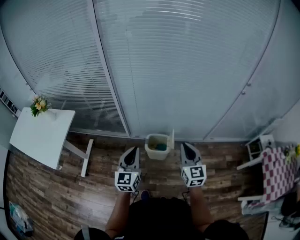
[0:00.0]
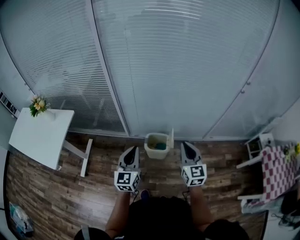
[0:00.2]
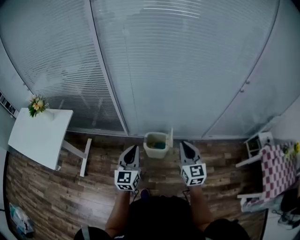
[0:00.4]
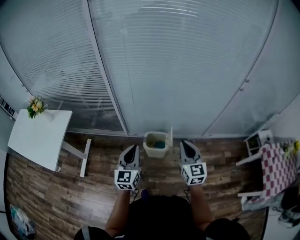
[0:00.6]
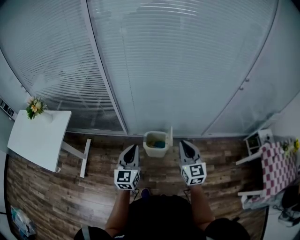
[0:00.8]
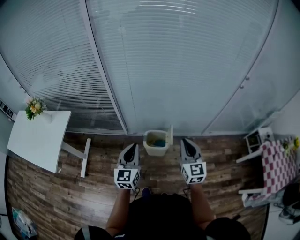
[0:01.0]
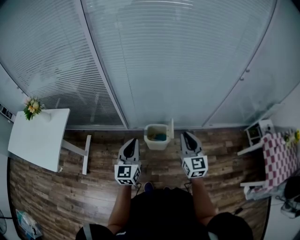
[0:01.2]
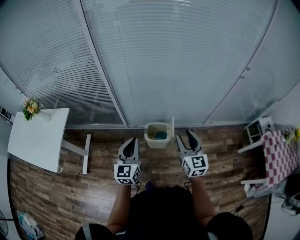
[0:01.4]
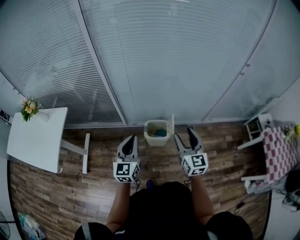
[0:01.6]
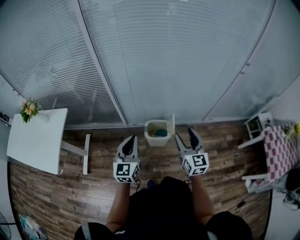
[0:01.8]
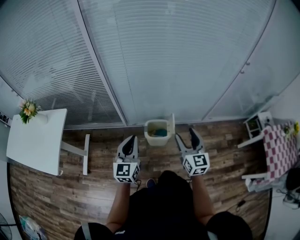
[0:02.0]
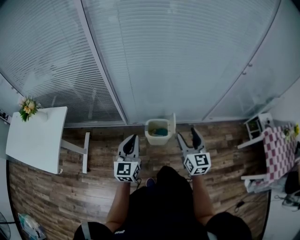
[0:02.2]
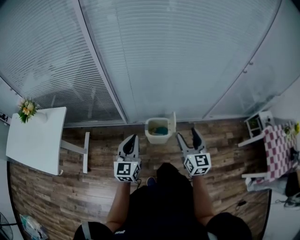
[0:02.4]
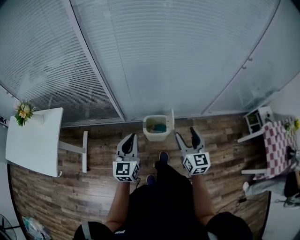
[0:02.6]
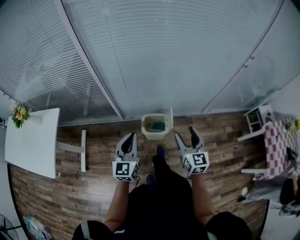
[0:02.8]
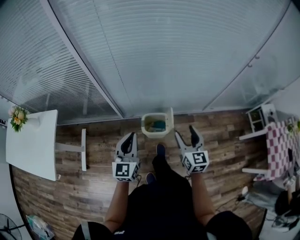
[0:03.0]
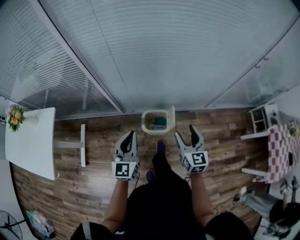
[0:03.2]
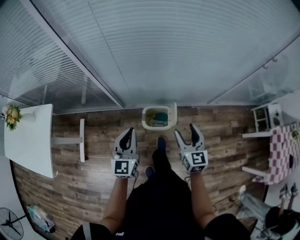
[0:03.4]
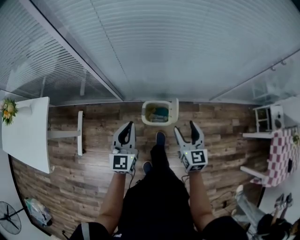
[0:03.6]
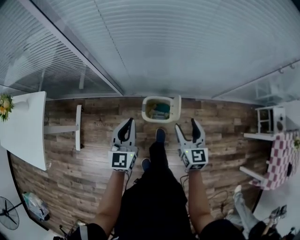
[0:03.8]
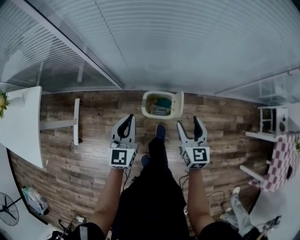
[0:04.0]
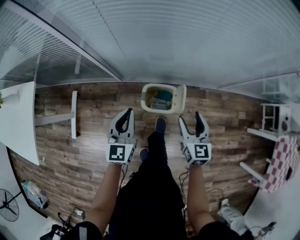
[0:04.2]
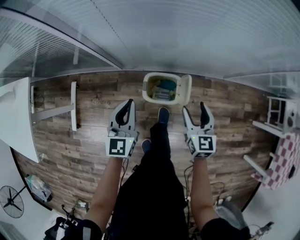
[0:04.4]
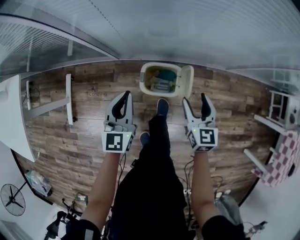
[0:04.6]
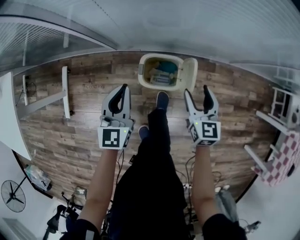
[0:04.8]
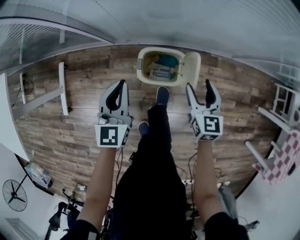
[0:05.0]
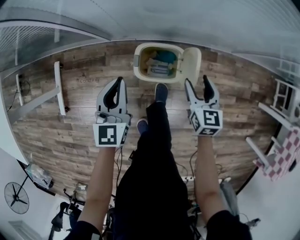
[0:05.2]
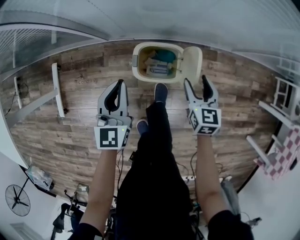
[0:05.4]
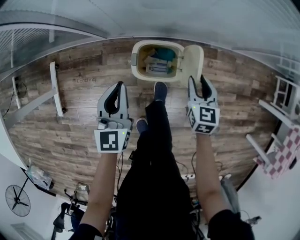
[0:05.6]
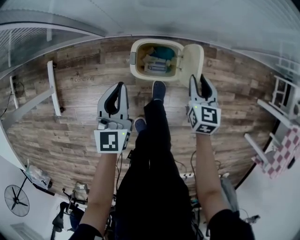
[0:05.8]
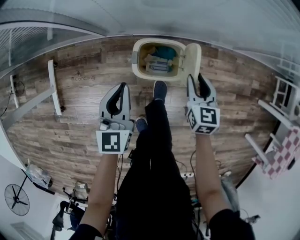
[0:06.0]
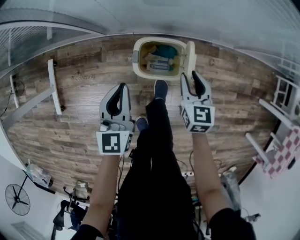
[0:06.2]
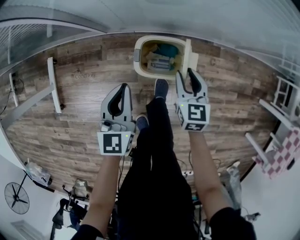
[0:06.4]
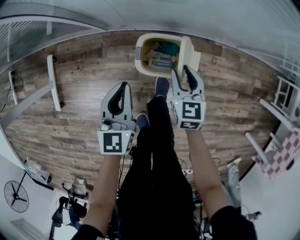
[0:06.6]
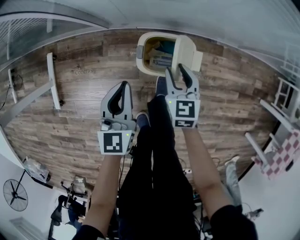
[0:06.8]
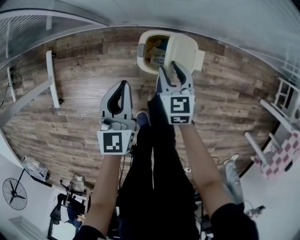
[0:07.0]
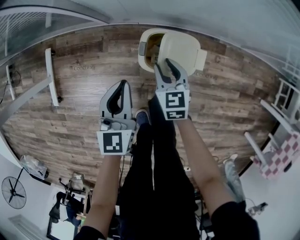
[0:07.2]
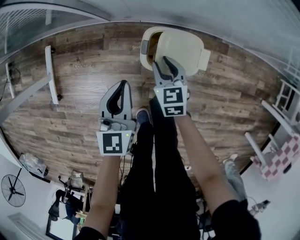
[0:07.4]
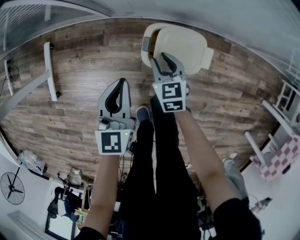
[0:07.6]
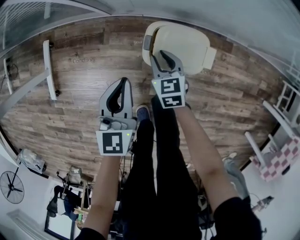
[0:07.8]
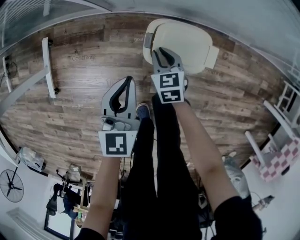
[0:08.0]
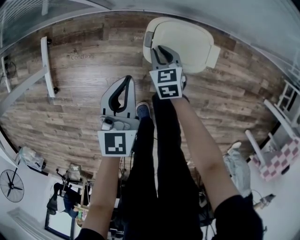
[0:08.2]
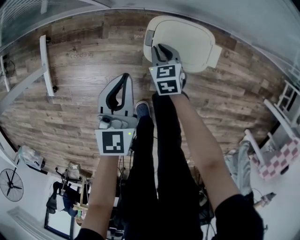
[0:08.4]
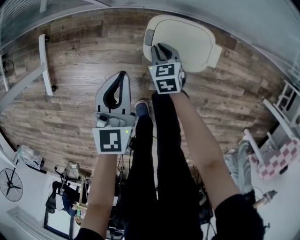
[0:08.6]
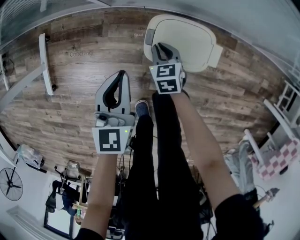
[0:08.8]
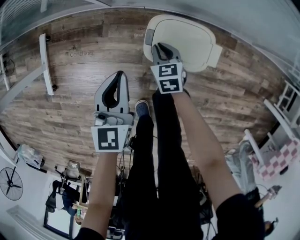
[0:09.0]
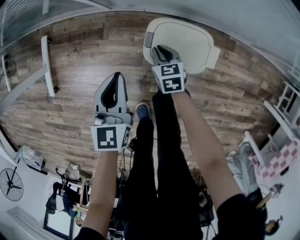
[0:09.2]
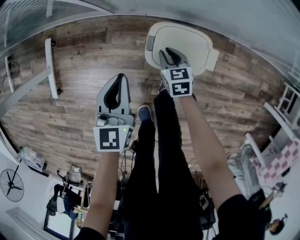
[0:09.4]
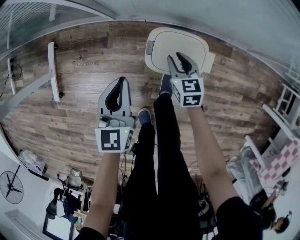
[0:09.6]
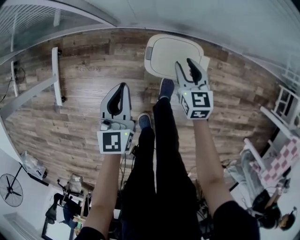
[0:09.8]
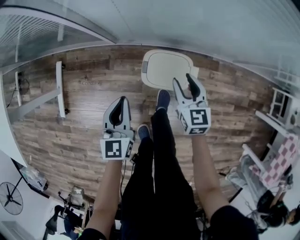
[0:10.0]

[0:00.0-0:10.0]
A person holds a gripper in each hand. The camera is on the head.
0:00.0 to 0:01.4: The right gripper opens up.
0:01.4 to 0:02.8: The right gripper moves downward, roughly 5 cm. The left gripper changes place by approximately 5 cm.
0:02.8 to 0:04.2: The two grippers go approximately 20 cm downward and forward.
0:04.2 to 0:05.8: The two grippers go about 20 cm downward. The right gripper closes up.
0:05.8 to 0:07.2: The right gripper shifts approximately 20 cm to the left.
0:07.2 to 0:08.6: The right gripper travels downward by roughly 15 cm, and closes up.
0:08.6 to 0:10.0: The right gripper heads upward and to the right, covering about 25 cm, swivels approximately 20 degrees, and opens its fingers. Meanwhile the left gripper heads upward, covering roughly 10 cm.

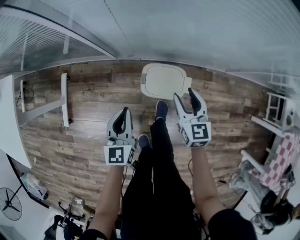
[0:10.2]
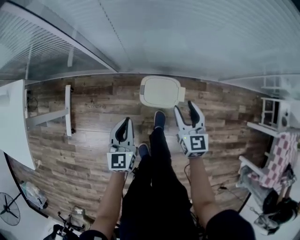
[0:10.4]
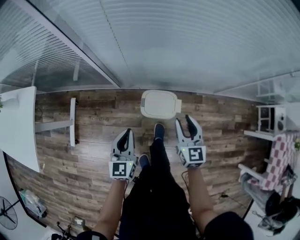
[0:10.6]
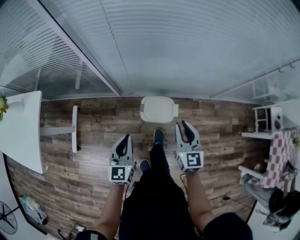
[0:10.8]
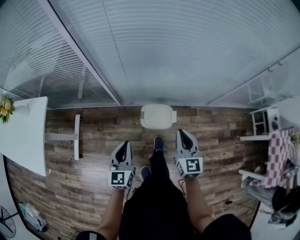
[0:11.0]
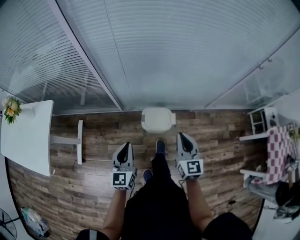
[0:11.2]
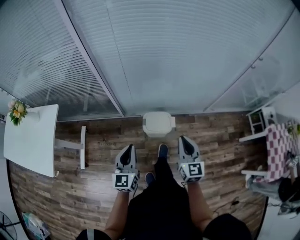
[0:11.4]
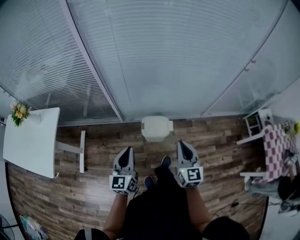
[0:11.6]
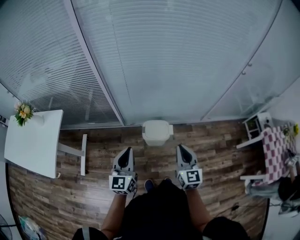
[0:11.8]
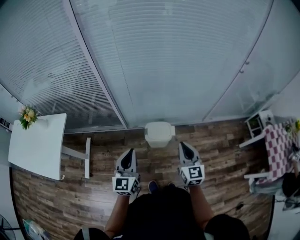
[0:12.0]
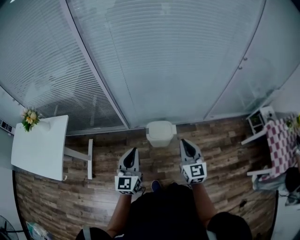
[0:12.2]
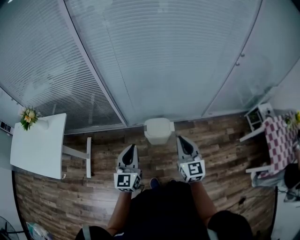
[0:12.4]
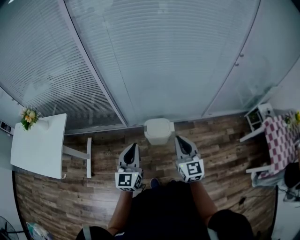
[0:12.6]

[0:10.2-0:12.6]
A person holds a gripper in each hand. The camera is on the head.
0:10.2 to 0:11.4: The grippers both shift upward and backward by about 30 cm. The right gripper closes.
0:11.4 to 0:12.6: The left gripper shifts about 5 cm upward, while the right gripper shifts about 10 cm upward and backward.

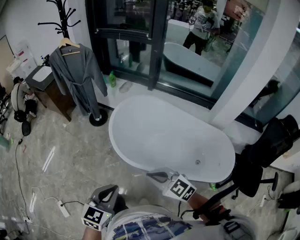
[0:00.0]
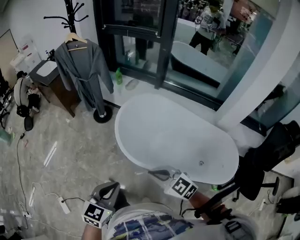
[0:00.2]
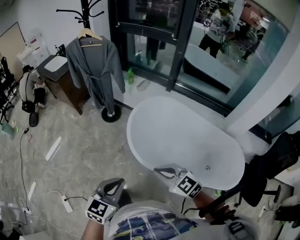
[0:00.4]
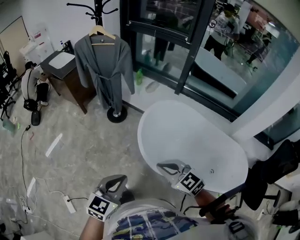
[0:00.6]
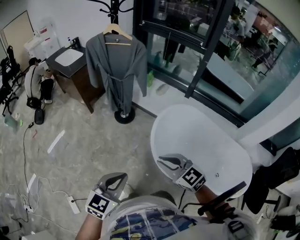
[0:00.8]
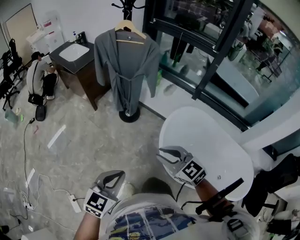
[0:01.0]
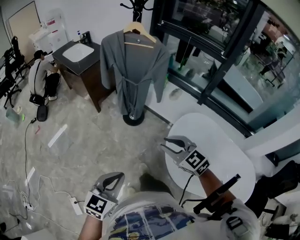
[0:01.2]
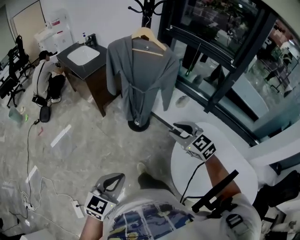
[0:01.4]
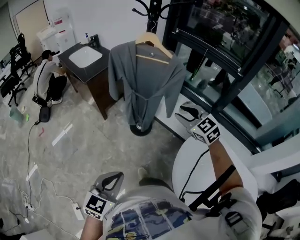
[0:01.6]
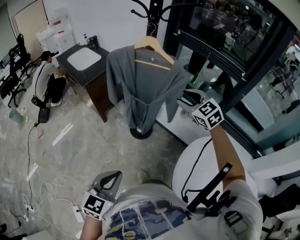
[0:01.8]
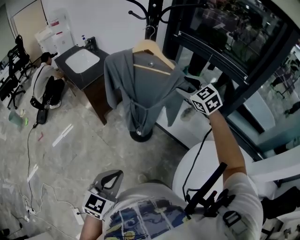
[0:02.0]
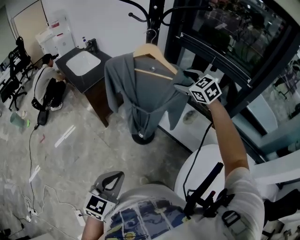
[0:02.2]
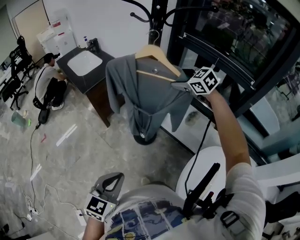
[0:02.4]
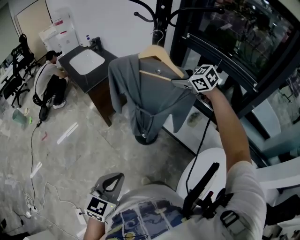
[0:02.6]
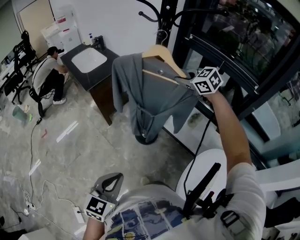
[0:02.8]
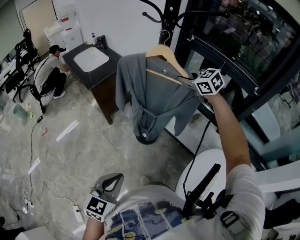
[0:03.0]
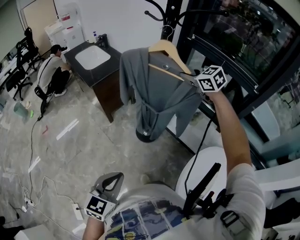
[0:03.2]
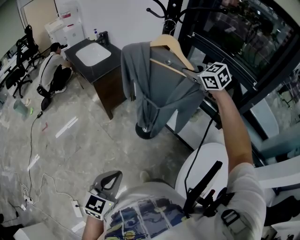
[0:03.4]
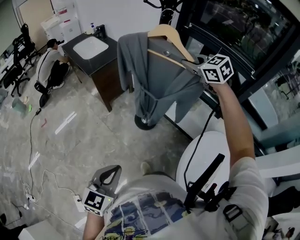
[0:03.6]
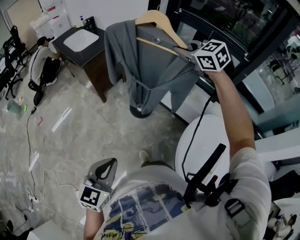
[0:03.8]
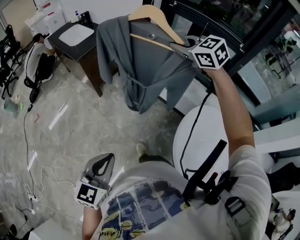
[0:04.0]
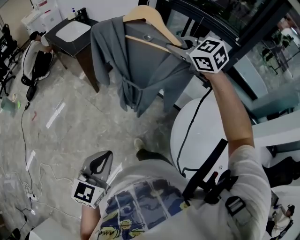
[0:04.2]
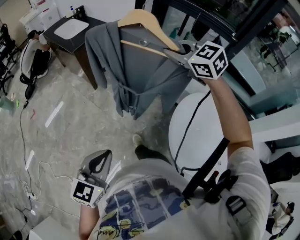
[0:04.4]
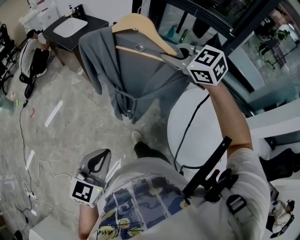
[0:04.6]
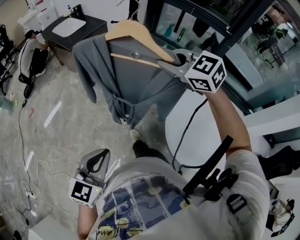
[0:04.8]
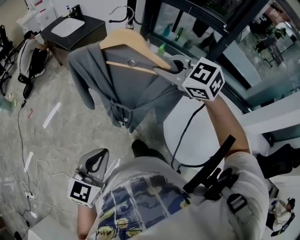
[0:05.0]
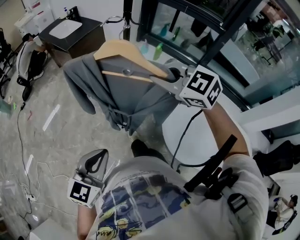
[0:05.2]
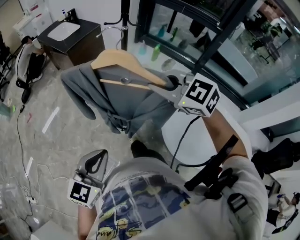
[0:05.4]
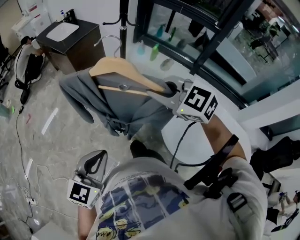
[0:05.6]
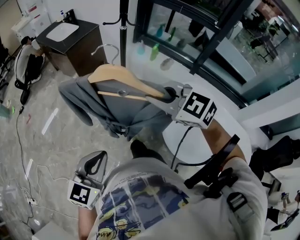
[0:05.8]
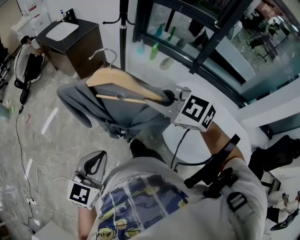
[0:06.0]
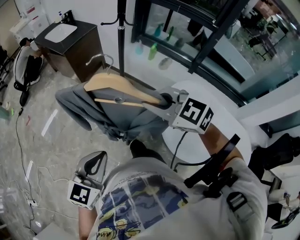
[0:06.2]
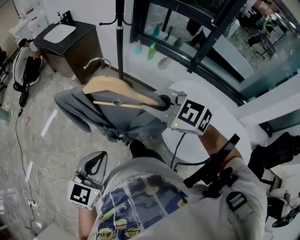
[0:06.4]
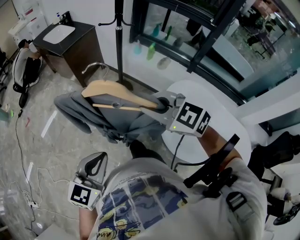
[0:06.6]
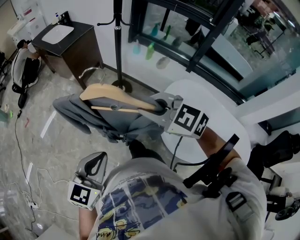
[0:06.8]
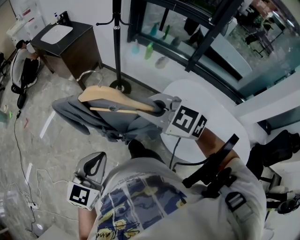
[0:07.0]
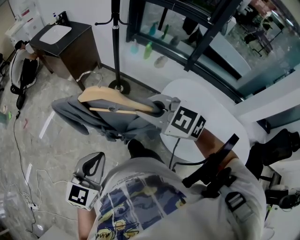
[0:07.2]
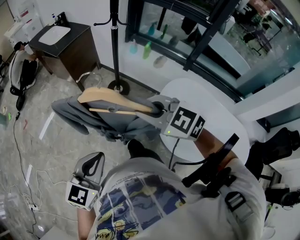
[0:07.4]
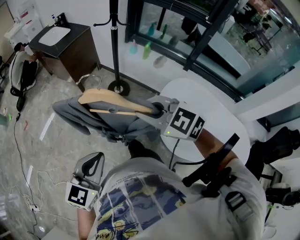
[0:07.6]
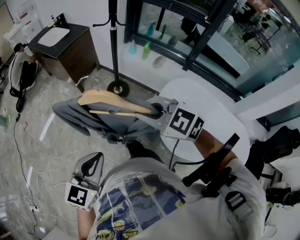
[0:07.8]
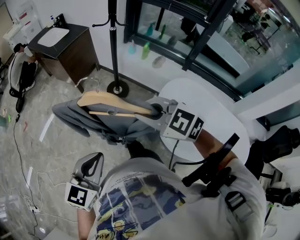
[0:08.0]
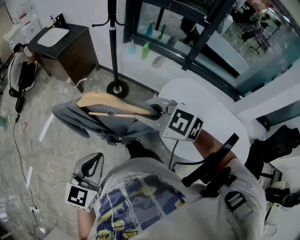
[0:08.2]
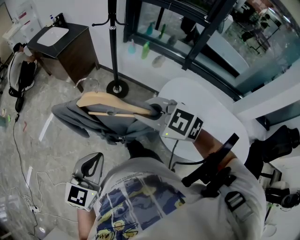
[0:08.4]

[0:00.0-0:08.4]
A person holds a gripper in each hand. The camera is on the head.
0:00.0 to 0:01.4: The pair of grippers is taken forward and to the left, roughly 50 cm. The right gripper opens up.
0:01.4 to 0:02.8: The right gripper goes about 40 cm forward, and closes, while the left gripper heads forward, covering some 20 cm.
0:02.8 to 0:04.2: The right gripper shifts roughly 20 cm backward. Meanwhile the left gripper moves backward, roughly 15 cm.
0:04.2 to 0:05.6: The left gripper is displaced backward by roughly 10 cm. Meanwhile the right gripper shifts roughly 25 cm backward.
0:05.6 to 0:07.0: The right gripper shifts roughly 5 cm backward.
0:07.0 to 0:08.4: Both grippers stay put.

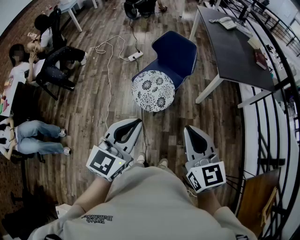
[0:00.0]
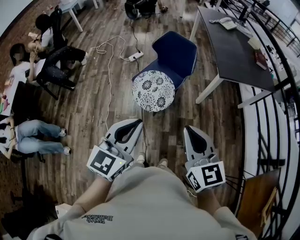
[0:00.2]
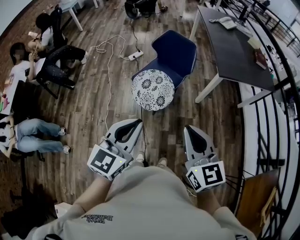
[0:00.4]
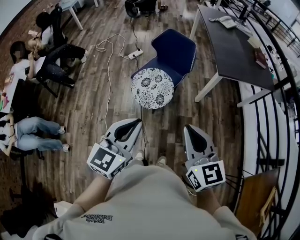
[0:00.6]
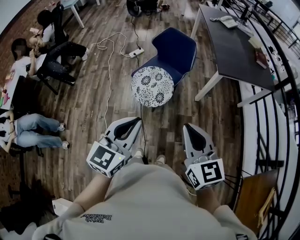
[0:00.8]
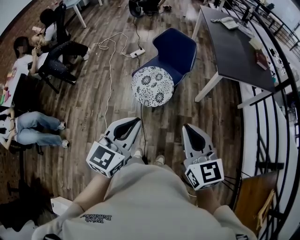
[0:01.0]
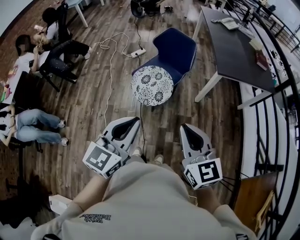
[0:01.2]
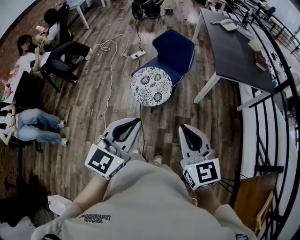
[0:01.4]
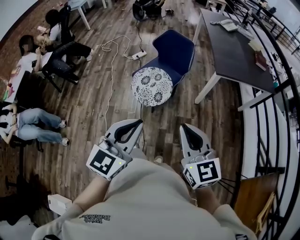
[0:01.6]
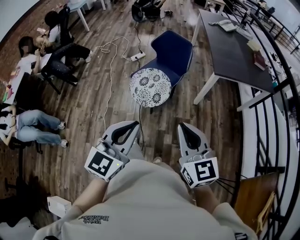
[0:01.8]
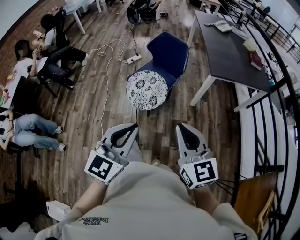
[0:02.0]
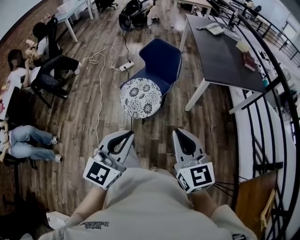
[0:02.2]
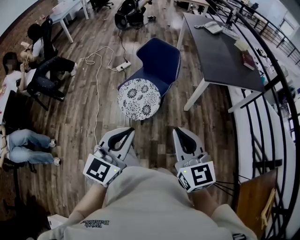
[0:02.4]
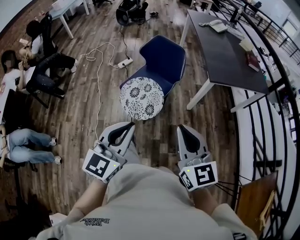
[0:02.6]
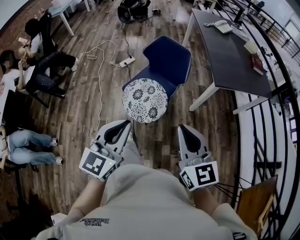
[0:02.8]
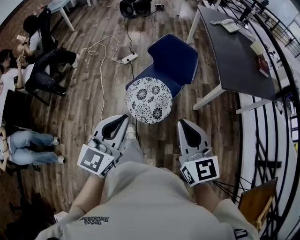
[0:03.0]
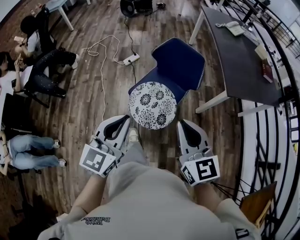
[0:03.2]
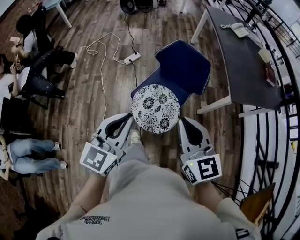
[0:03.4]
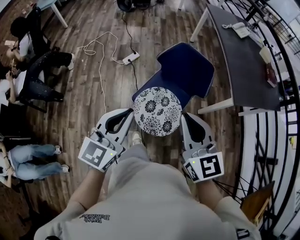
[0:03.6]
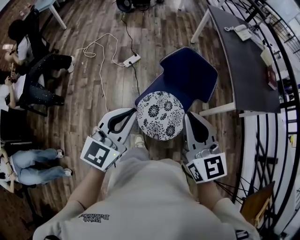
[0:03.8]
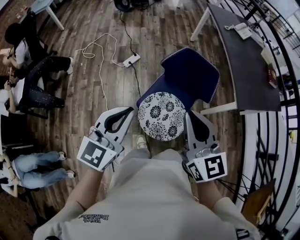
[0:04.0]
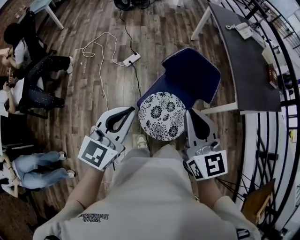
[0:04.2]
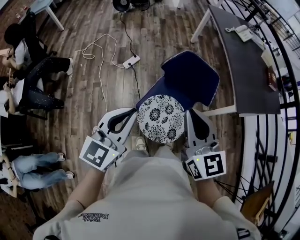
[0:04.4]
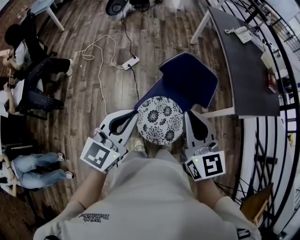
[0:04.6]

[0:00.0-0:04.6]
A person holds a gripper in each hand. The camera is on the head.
0:00.0 to 0:01.6: The grippers both shift to the right and backward by approximately 10 cm.
0:01.6 to 0:03.0: The two grippers go roughly 25 cm forward and to the left.
0:03.0 to 0:04.6: The two grippers go approximately 30 cm forward and to the left.
